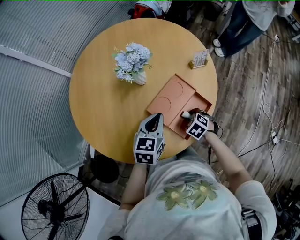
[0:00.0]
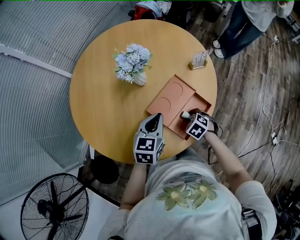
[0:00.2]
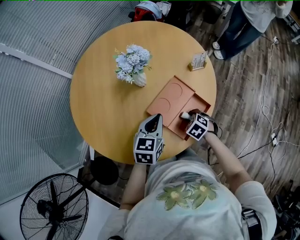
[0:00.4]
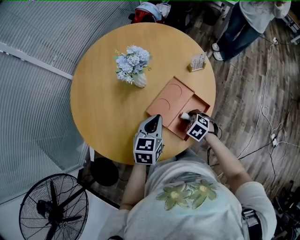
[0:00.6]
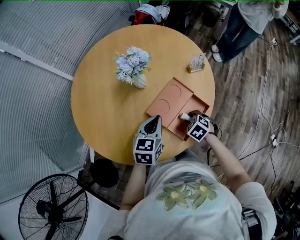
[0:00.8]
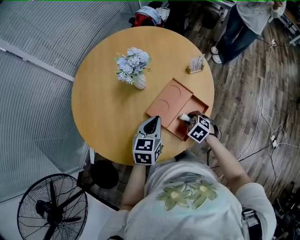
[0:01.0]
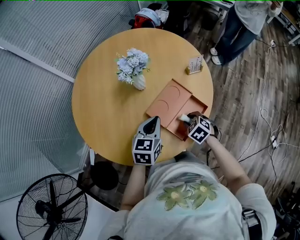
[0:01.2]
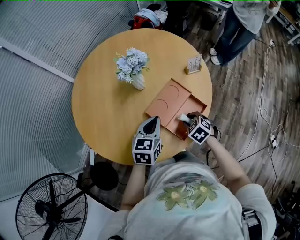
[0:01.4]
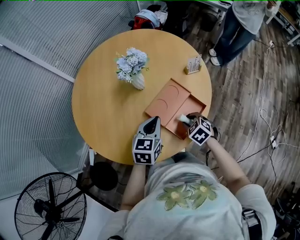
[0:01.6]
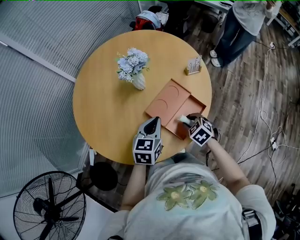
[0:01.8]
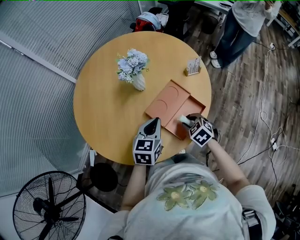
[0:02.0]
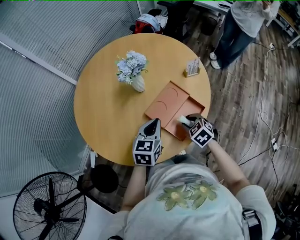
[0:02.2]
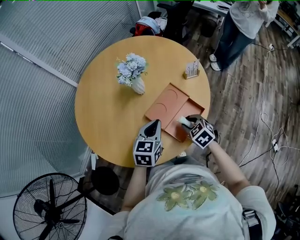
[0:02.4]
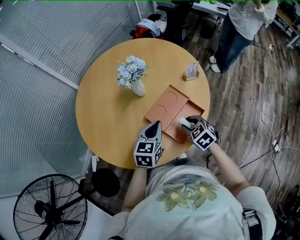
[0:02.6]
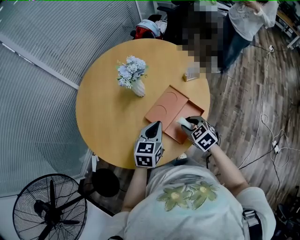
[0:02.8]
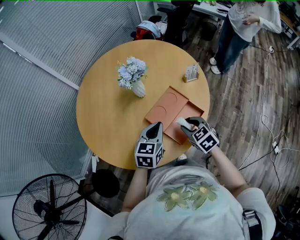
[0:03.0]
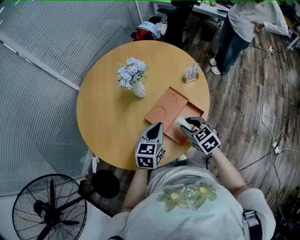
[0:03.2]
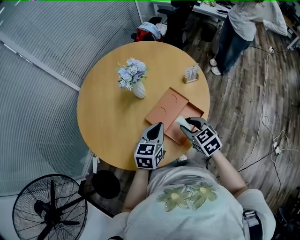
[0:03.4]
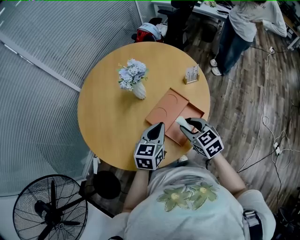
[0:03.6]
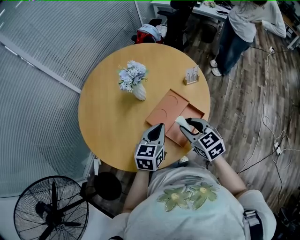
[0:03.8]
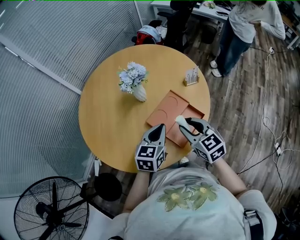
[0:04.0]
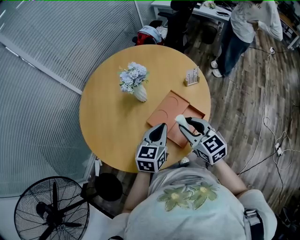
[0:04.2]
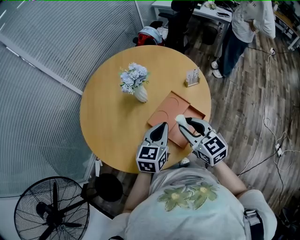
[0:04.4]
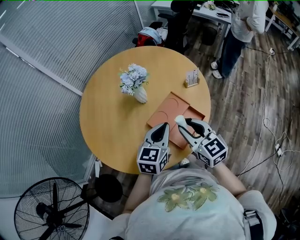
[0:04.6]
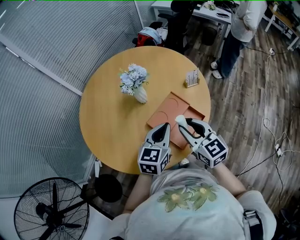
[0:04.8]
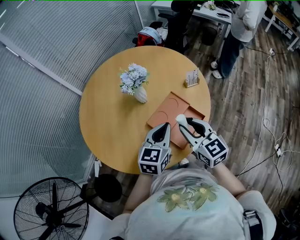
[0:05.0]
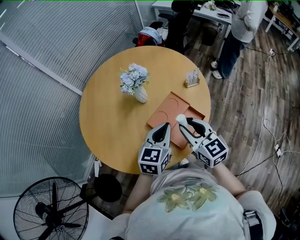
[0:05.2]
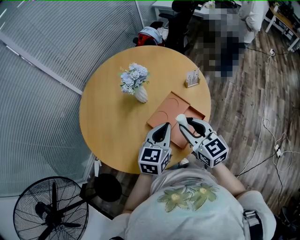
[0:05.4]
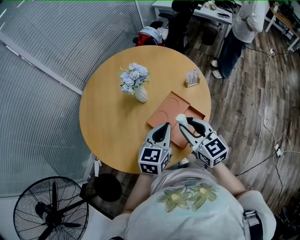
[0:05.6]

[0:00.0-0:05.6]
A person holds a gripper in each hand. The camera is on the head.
0:00.0 to 0:01.4: The right gripper heads upward, covering roughly 5 cm.
0:01.4 to 0:02.8: The right gripper moves upward, some 5 cm.
0:02.8 to 0:04.2: The right gripper goes roughly 15 cm upward, and swivels some 30 degrees.
0:04.2 to 0:05.6: The grippers move only a little.

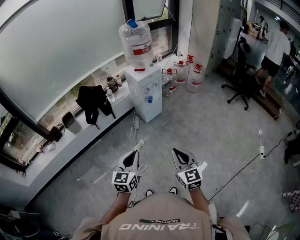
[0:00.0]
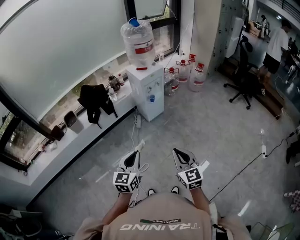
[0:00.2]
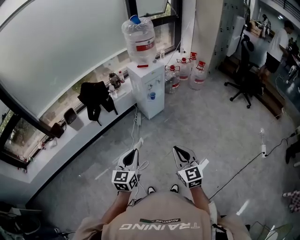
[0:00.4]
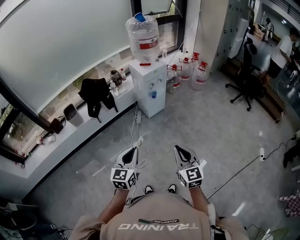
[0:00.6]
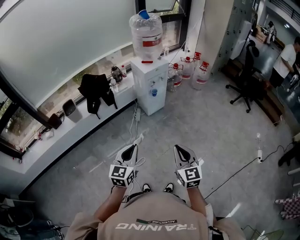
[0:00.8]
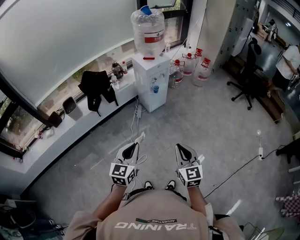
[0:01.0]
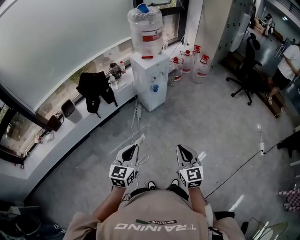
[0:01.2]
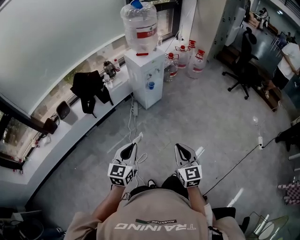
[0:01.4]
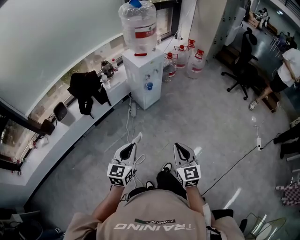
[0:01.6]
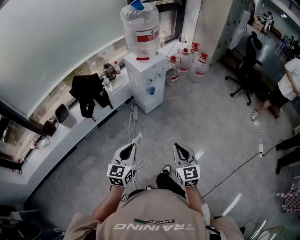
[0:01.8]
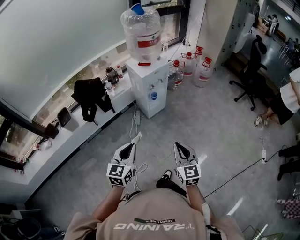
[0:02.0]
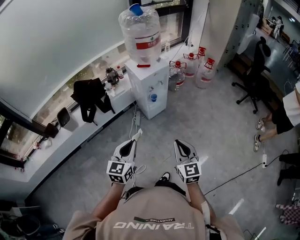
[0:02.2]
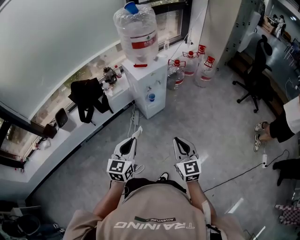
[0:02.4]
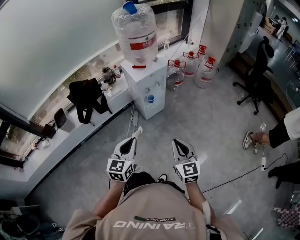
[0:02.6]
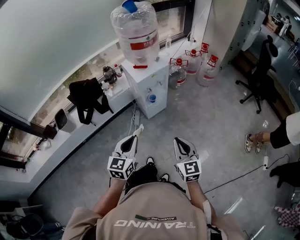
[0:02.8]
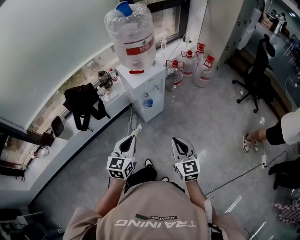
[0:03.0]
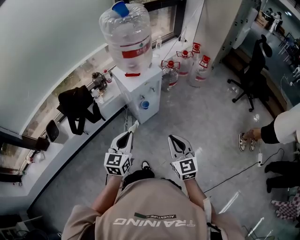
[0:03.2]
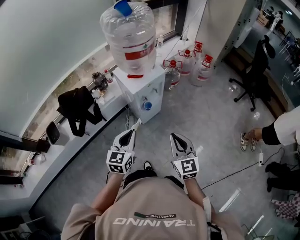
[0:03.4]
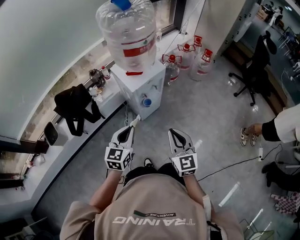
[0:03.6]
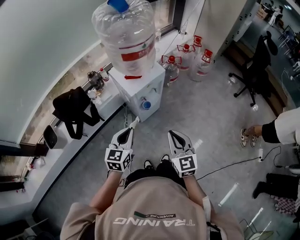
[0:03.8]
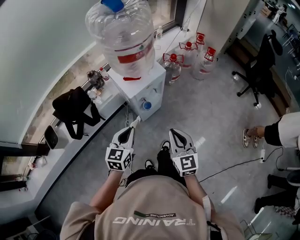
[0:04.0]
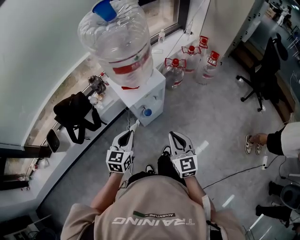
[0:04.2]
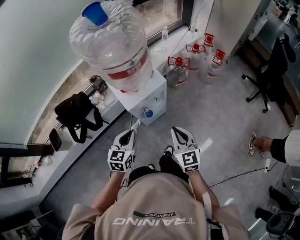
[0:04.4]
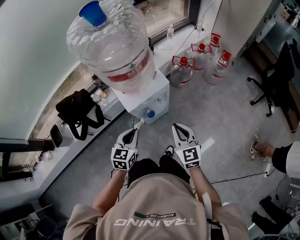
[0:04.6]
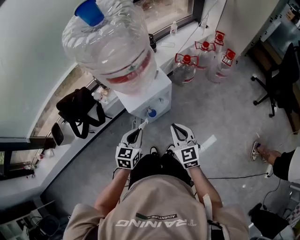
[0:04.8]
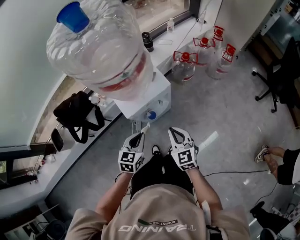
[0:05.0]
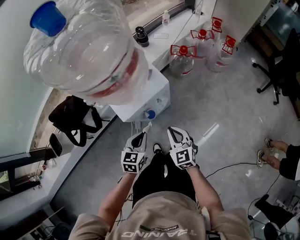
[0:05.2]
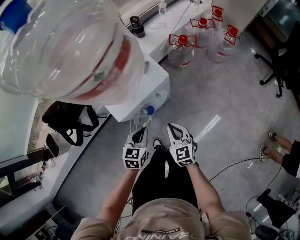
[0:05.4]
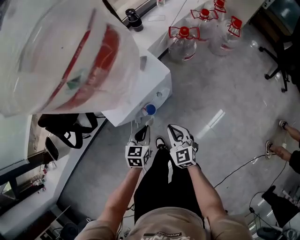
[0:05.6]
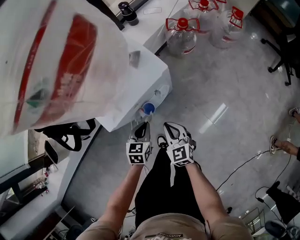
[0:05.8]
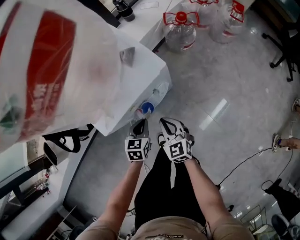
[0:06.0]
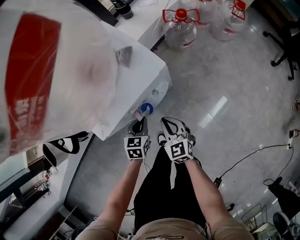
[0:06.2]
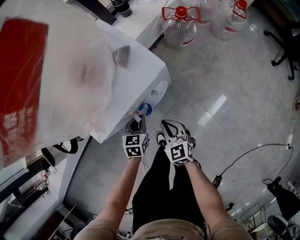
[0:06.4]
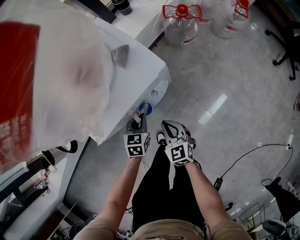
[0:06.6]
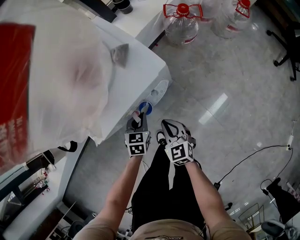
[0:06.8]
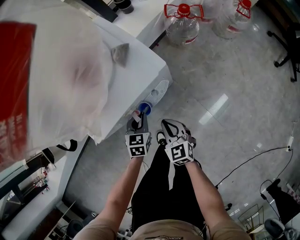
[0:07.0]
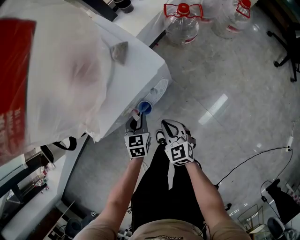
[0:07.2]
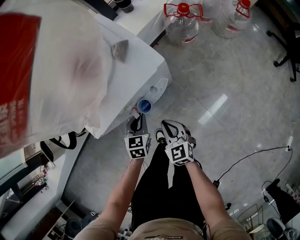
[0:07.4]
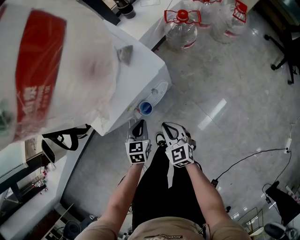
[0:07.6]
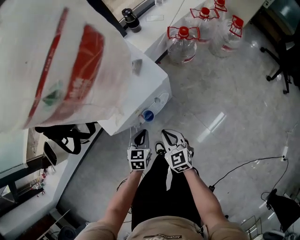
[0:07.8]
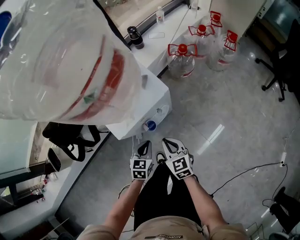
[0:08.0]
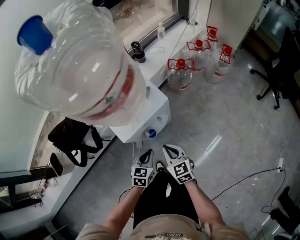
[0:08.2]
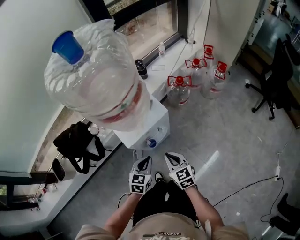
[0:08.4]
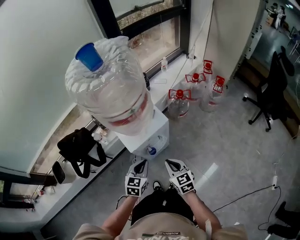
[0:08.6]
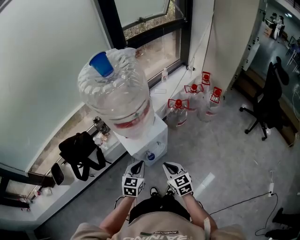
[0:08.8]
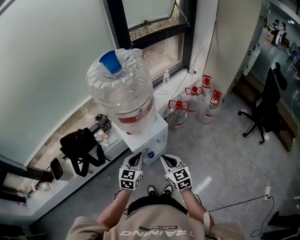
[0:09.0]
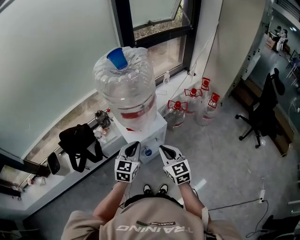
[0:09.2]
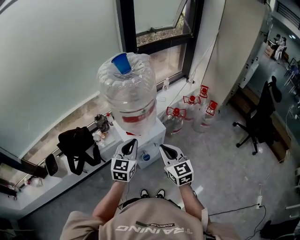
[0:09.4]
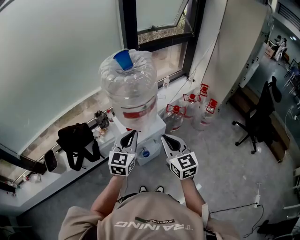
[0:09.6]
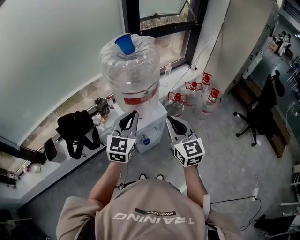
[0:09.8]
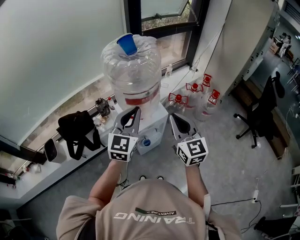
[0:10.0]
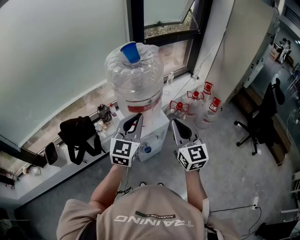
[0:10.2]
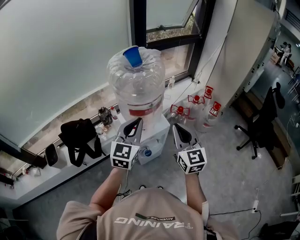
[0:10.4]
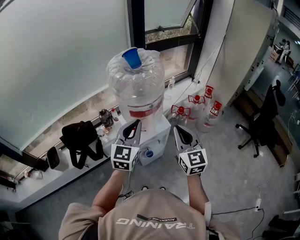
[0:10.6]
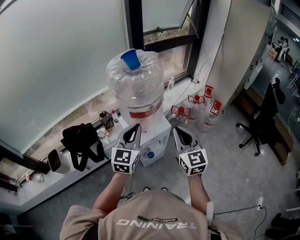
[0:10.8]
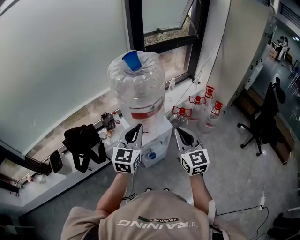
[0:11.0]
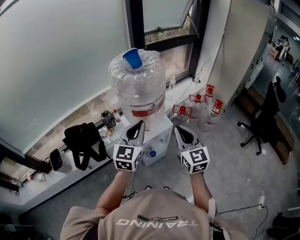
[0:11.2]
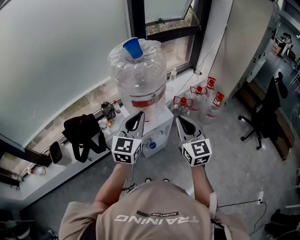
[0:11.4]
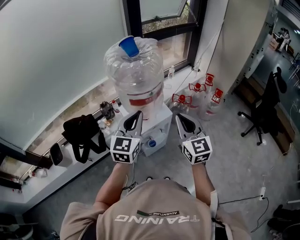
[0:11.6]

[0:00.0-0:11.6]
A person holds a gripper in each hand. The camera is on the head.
0:00.0 to 0:01.4: The right gripper ends up roughly 5 cm from where it was. The left gripper heads to the left, covering some 5 cm.
0:01.4 to 0:02.8: The two grippers go about 25 cm forward.
0:02.8 to 0:04.4: Both grippers travel together forward, roughly 30 cm.
0:04.4 to 0:05.8: Both grippers move downward, some 30 cm.
0:05.8 to 0:07.2: The grippers both shift downward by roughly 5 cm.
0:07.2 to 0:08.8: The grippers both shift upward by approximately 30 cm.
0:08.8 to 0:10.2: The two grippers go approximately 25 cm upward. The right gripper rotates approximately 30 degrees; the left gripper swivels about 30 degrees.
0:10.2 to 0:11.6: The grippers make only small movements.

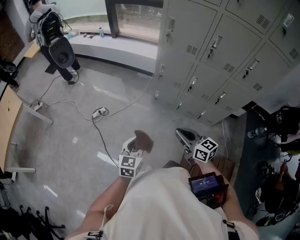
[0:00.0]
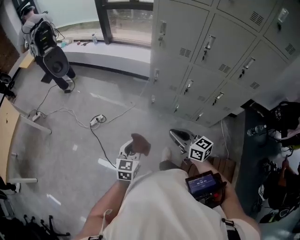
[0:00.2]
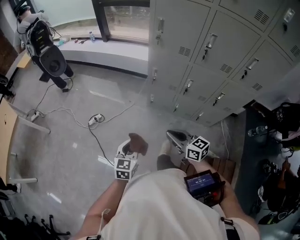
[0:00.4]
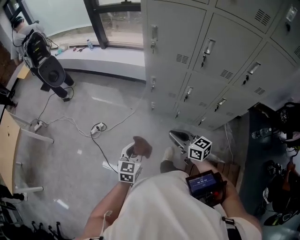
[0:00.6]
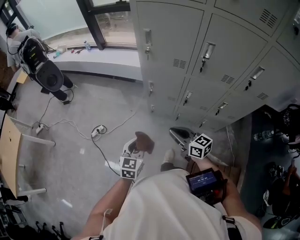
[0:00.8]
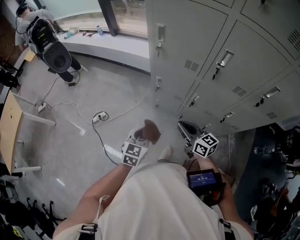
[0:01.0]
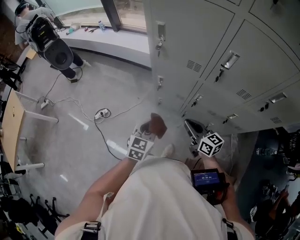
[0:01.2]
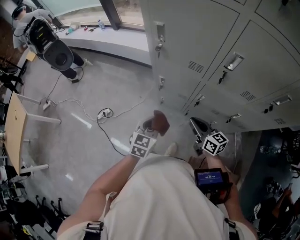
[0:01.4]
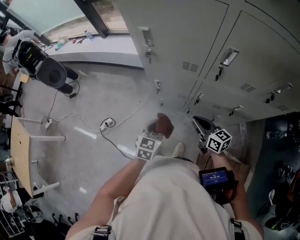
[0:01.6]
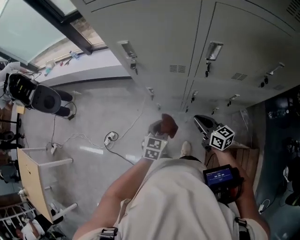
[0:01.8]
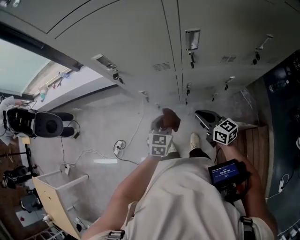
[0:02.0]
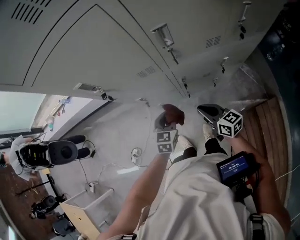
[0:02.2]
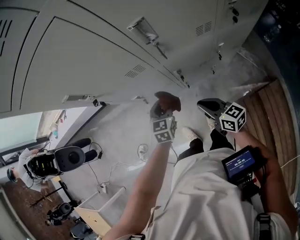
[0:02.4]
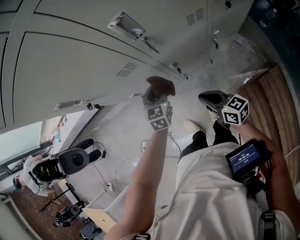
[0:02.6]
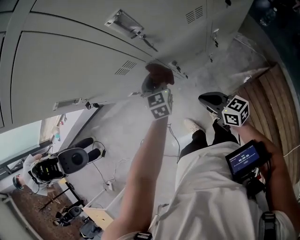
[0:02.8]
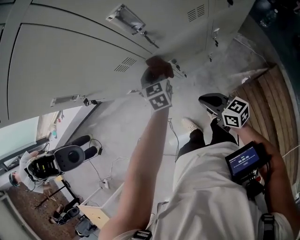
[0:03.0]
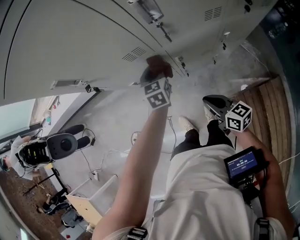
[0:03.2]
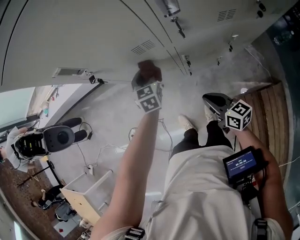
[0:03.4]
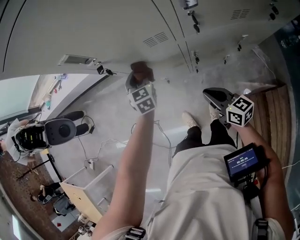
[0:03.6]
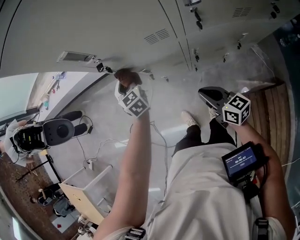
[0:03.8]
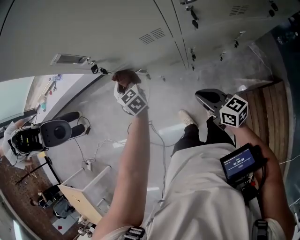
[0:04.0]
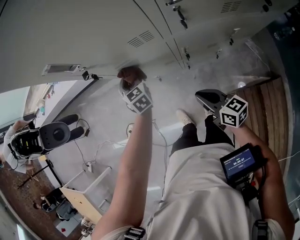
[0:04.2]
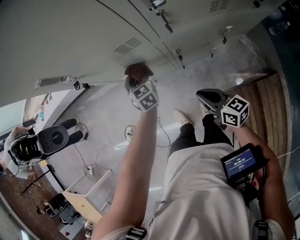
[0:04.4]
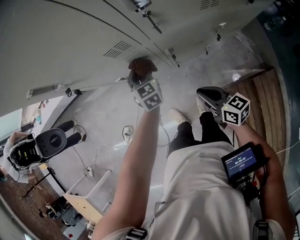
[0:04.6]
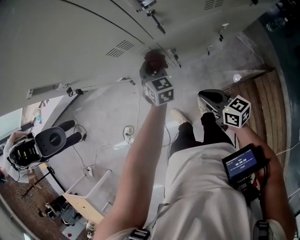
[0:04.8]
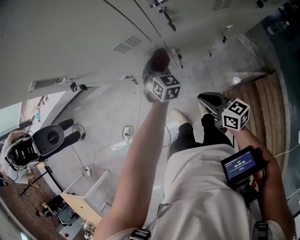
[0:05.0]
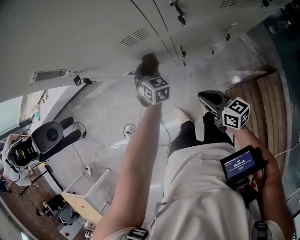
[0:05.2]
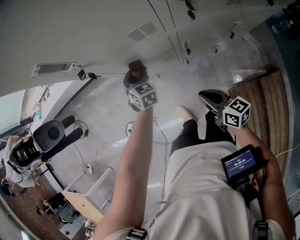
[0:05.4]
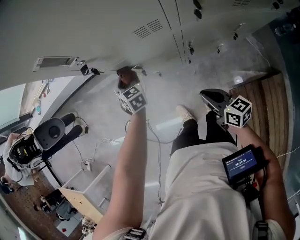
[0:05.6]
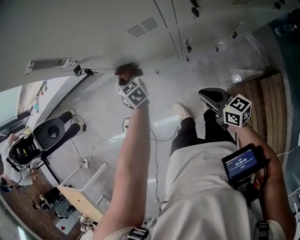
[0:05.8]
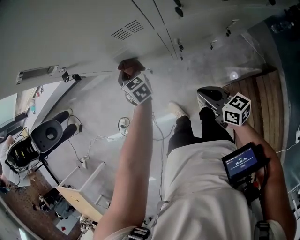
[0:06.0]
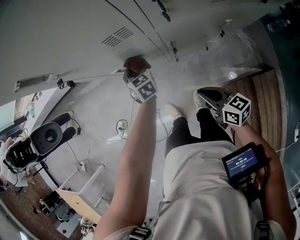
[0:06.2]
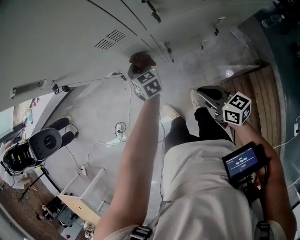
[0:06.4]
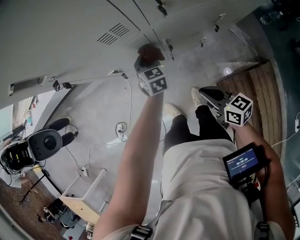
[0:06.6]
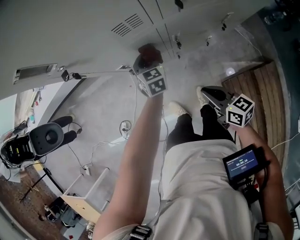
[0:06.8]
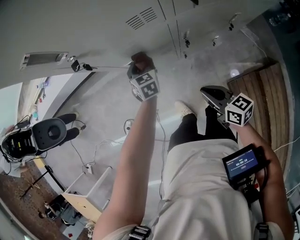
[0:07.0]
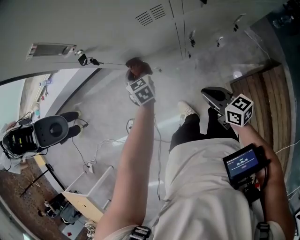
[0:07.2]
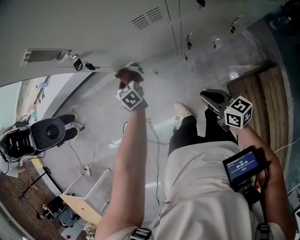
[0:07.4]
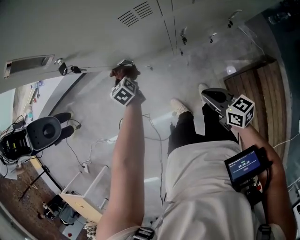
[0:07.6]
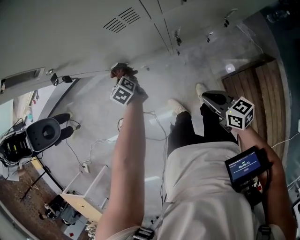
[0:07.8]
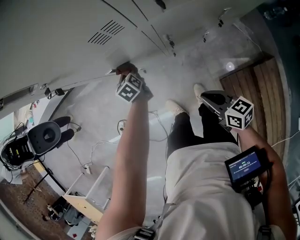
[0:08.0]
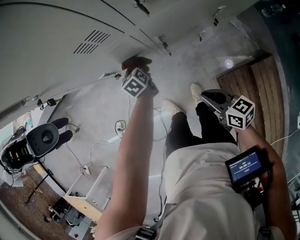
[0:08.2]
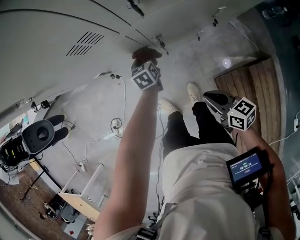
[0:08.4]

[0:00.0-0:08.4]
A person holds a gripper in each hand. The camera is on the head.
0:00.0 to 0:01.4: The two grippers go about 35 cm forward and to the right.
0:01.4 to 0:02.8: The right gripper travels downward by about 5 cm, and rotates about 30 degrees. Meanwhile the left gripper travels forward and to the right by some 25 cm, and turns by roughly 20 degrees.
0:02.8 to 0:04.2: The left gripper ends up roughly 20 cm from where it was, and changes its angle by approximately 30 degrees, while the right gripper moves roughly 5 cm.
0:04.2 to 0:05.6: The right gripper travels to the right and back again, roughly 5 cm each way. The left gripper travels to the right and back again, roughly 20 cm each way.
0:05.6 to 0:07.0: The left gripper travels to the right by about 10 cm.
0:07.0 to 0:08.4: The left gripper heads to the right and downward, covering some 15 cm, and turns by approximately 20 degrees, while the right gripper travels to the right and backward by some 10 cm.
